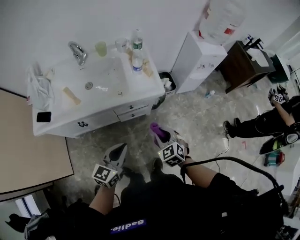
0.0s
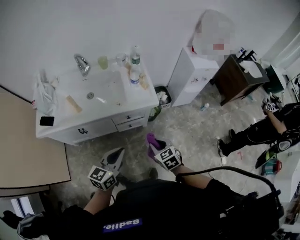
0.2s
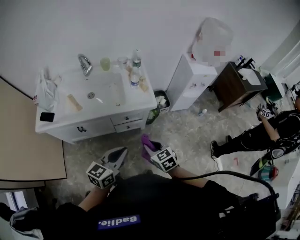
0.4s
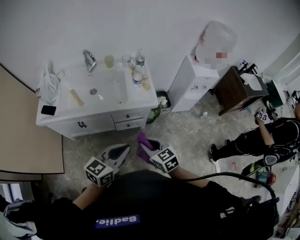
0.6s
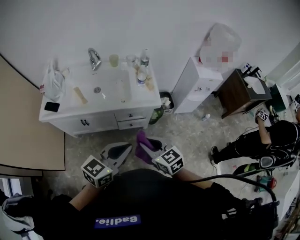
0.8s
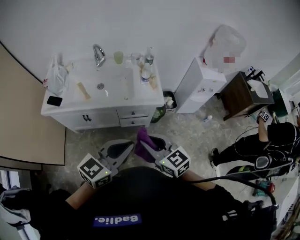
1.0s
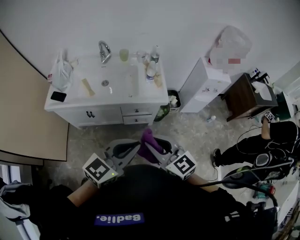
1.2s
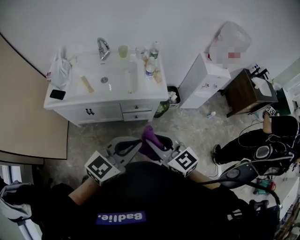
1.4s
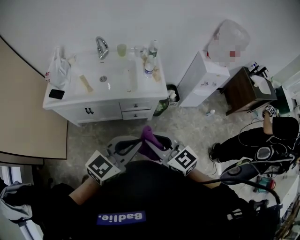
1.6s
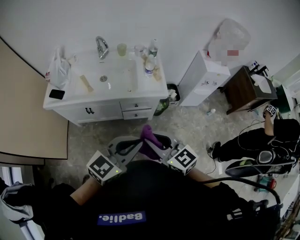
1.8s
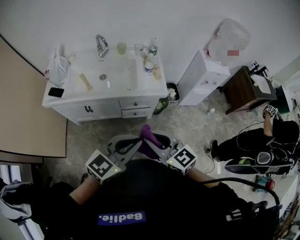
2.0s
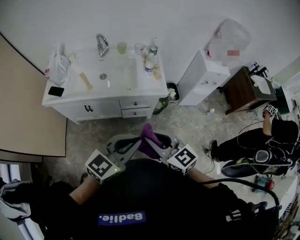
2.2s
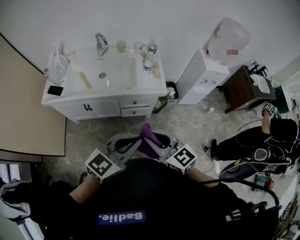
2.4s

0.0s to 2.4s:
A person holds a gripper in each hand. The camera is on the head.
0.0s to 1.2s: Both grippers travel together upward and backward, approximately 25 cm. The right gripper tips its fingers upward by approximately 30 degrees.
1.2s to 2.4s: There are only small adjustments of the grippers.

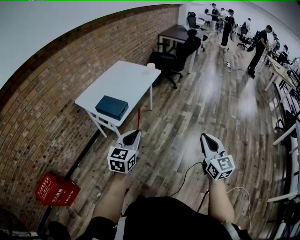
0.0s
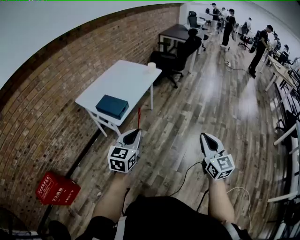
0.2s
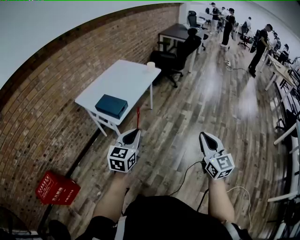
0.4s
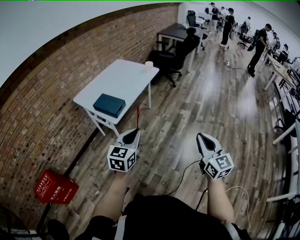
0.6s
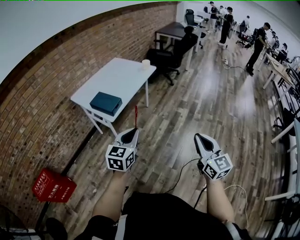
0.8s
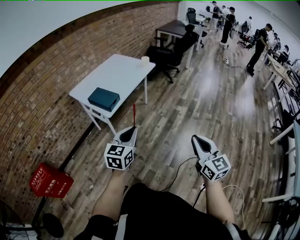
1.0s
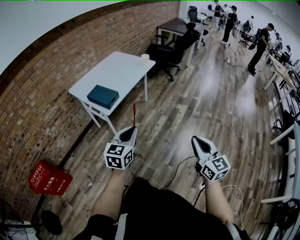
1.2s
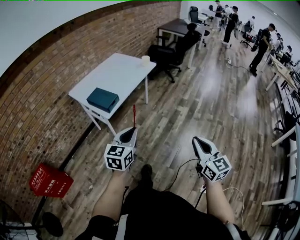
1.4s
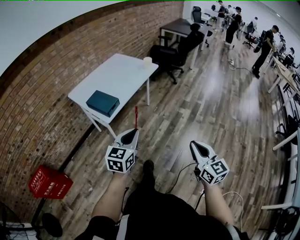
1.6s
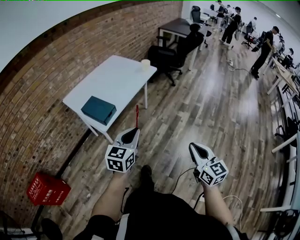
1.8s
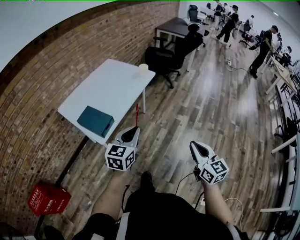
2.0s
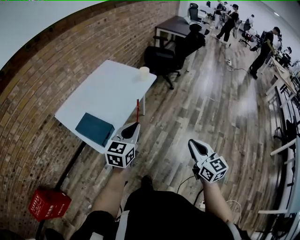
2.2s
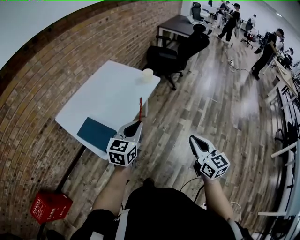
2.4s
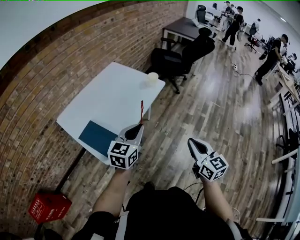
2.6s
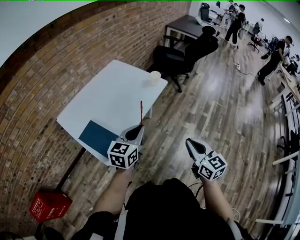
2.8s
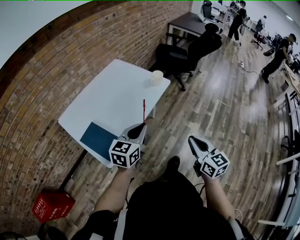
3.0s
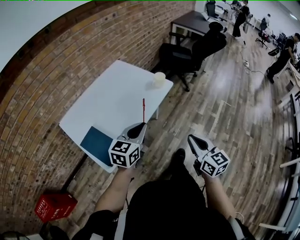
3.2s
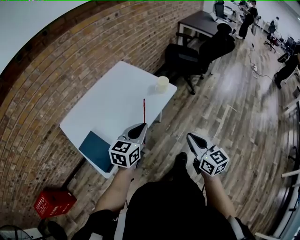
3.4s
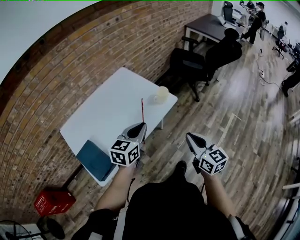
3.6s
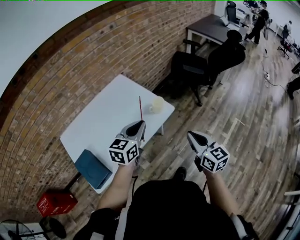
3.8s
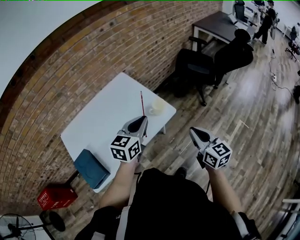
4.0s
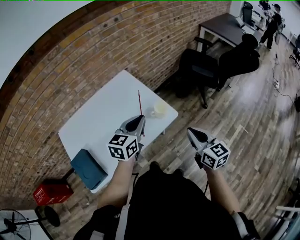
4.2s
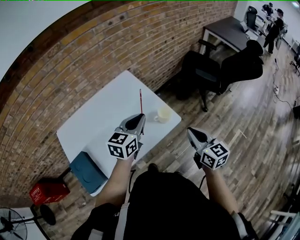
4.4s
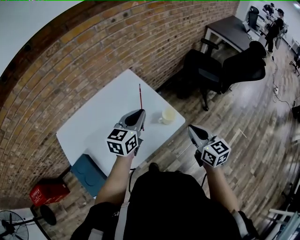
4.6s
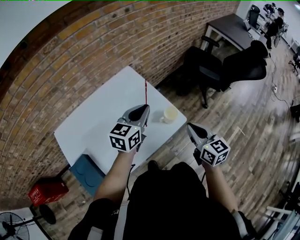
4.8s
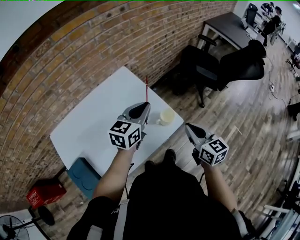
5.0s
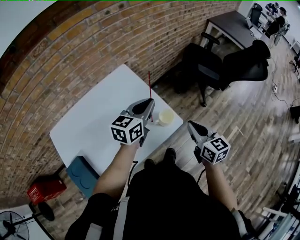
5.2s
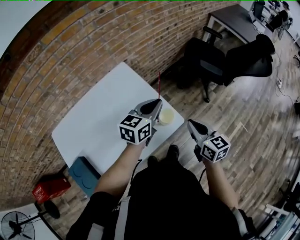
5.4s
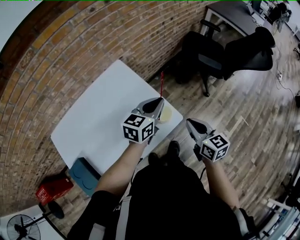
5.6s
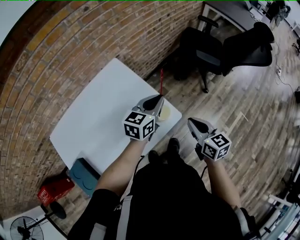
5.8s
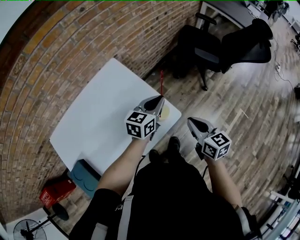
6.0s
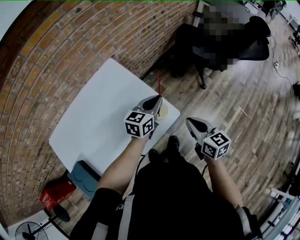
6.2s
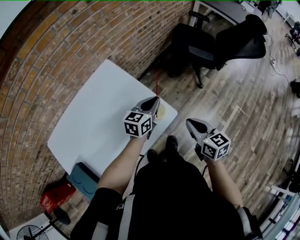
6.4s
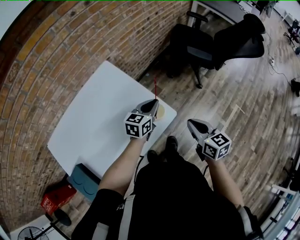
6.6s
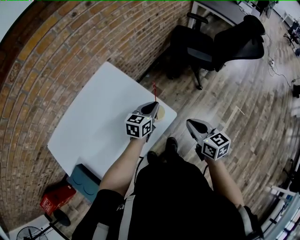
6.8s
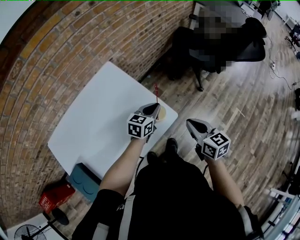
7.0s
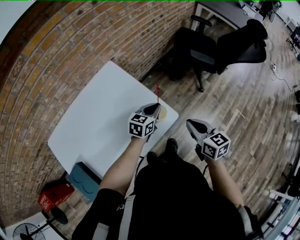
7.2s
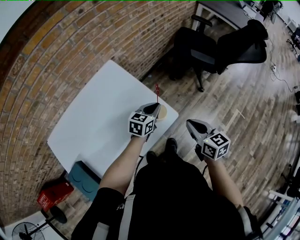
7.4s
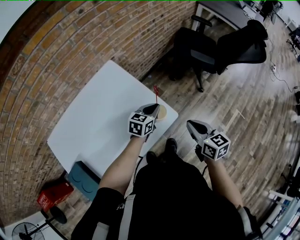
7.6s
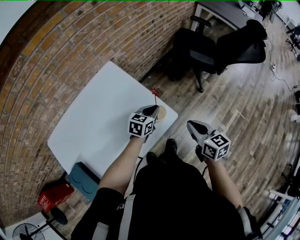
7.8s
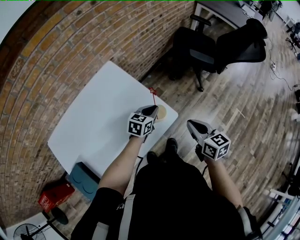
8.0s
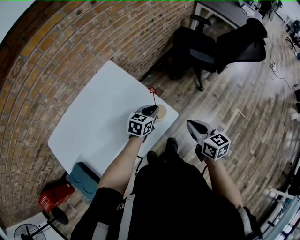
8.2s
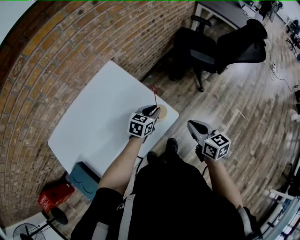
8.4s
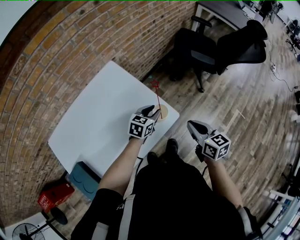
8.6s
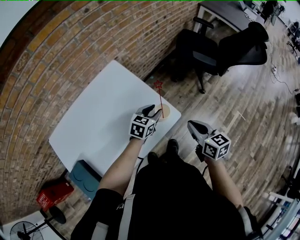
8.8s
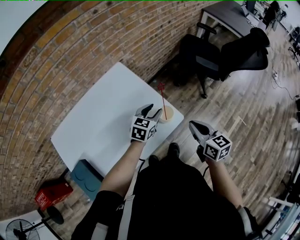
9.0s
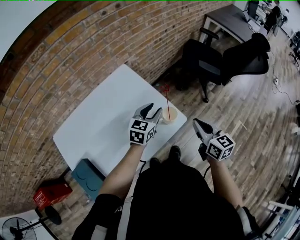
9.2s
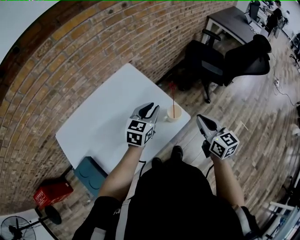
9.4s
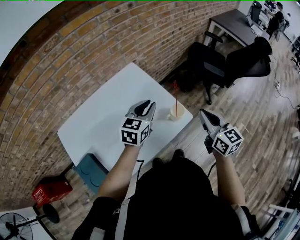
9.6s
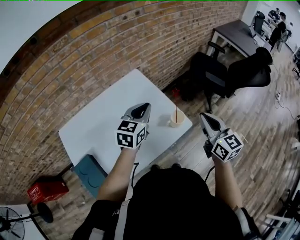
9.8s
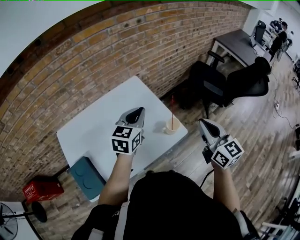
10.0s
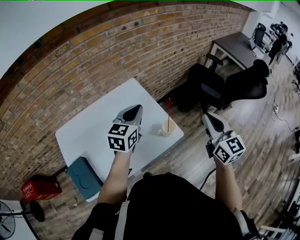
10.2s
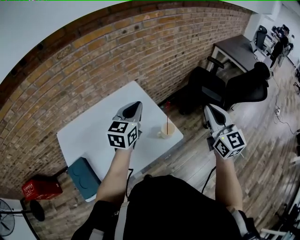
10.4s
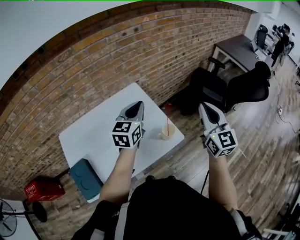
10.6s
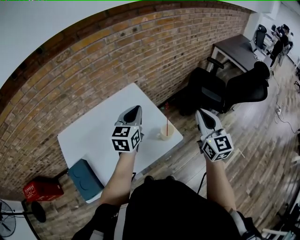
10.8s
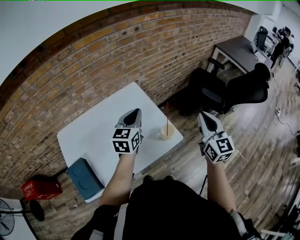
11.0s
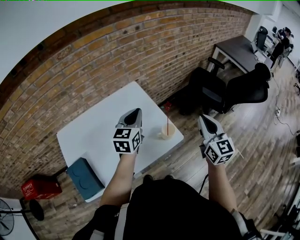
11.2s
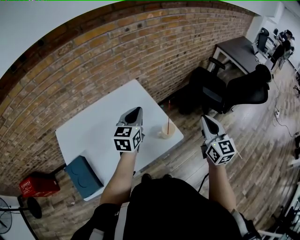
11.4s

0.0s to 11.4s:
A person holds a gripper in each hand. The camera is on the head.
0.0s to 1.4s: The left gripper goes roughly 5 cm to the right, while the right gripper shifts by about 5 cm.
1.4s to 2.8s: The pair of grippers is taken forward, roughly 40 cm.
2.8s to 4.2s: The grippers both shift forward by approximately 40 cm.
4.2s to 5.6s: The left gripper heads forward, covering some 15 cm, while the right gripper moves forward and downward, roughly 15 cm.
5.6s to 7.2s: The left gripper heads downward, covering approximately 10 cm.
7.2s to 8.6s: The left gripper opens.
8.6s to 10.0s: The left gripper heads upward and to the left, covering some 25 cm, rotates roughly 30 degrees, and closes. Meanwhile the right gripper moves upward, about 15 cm, and swivels approximately 30 degrees.
10.0s to 11.4s: The right gripper moves to the right, some 5 cm, and travels upward and back again, roughly 5 cm each way.

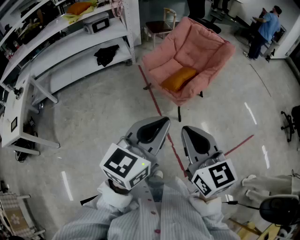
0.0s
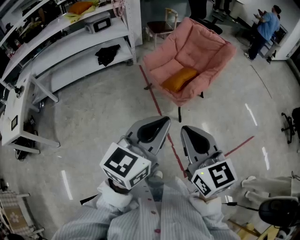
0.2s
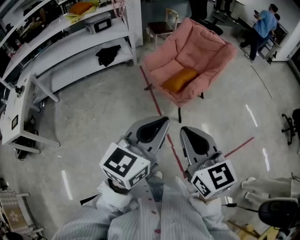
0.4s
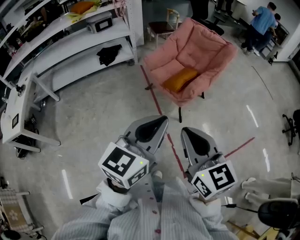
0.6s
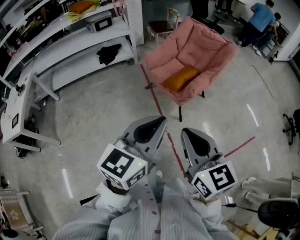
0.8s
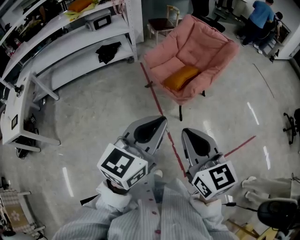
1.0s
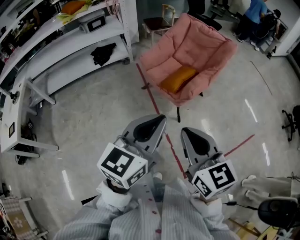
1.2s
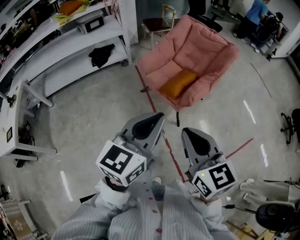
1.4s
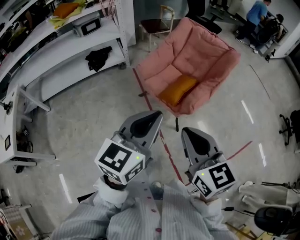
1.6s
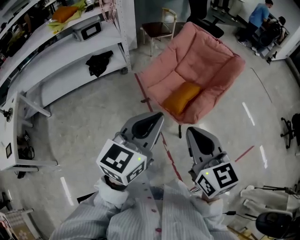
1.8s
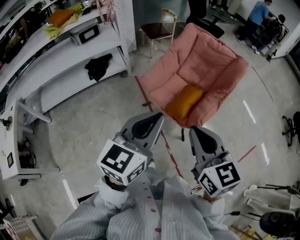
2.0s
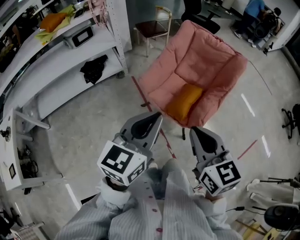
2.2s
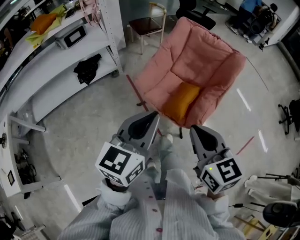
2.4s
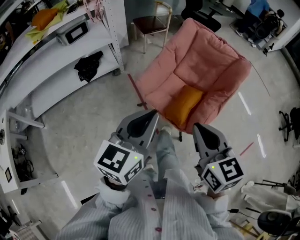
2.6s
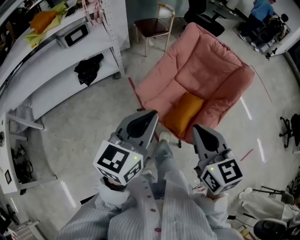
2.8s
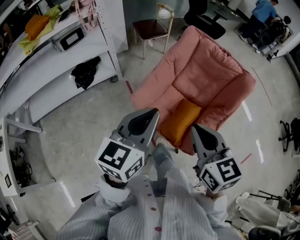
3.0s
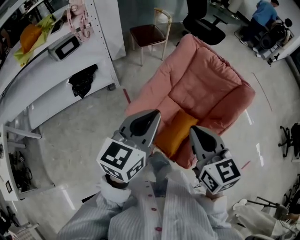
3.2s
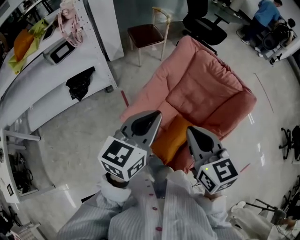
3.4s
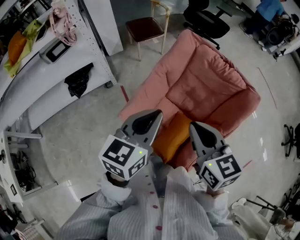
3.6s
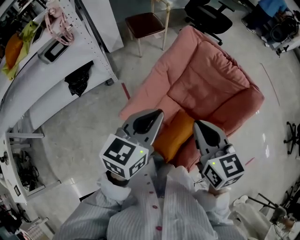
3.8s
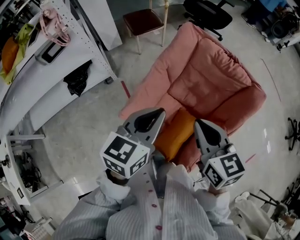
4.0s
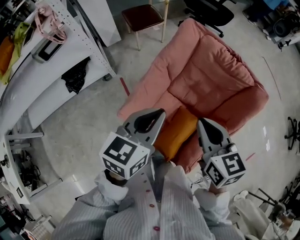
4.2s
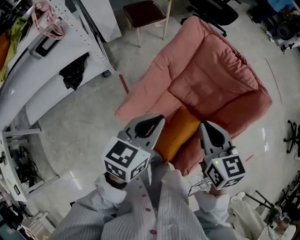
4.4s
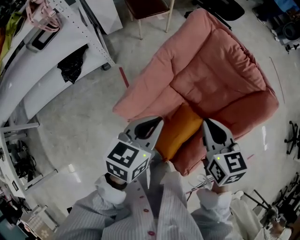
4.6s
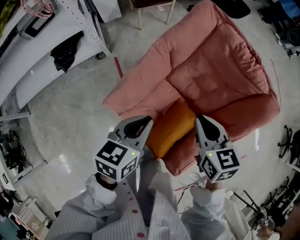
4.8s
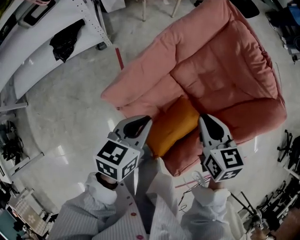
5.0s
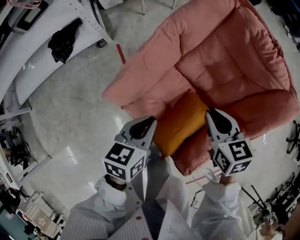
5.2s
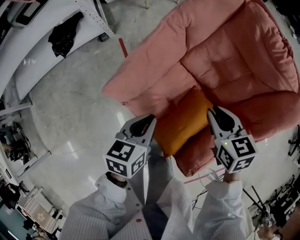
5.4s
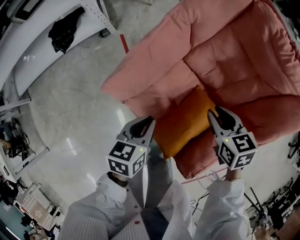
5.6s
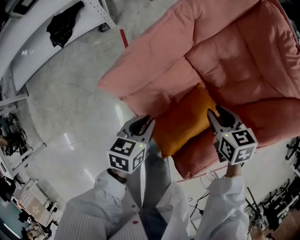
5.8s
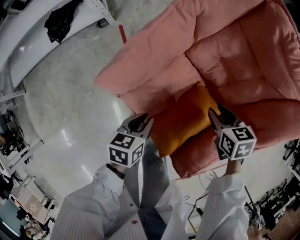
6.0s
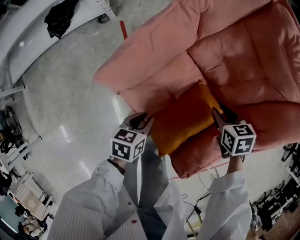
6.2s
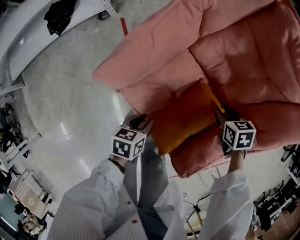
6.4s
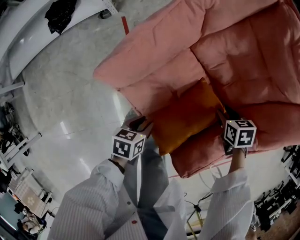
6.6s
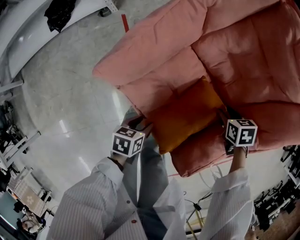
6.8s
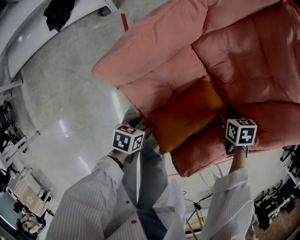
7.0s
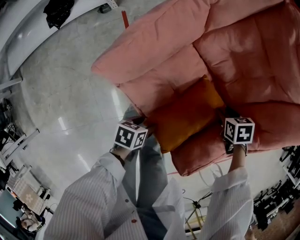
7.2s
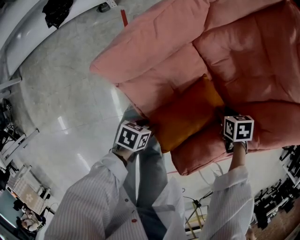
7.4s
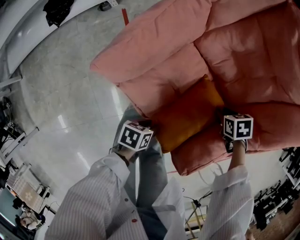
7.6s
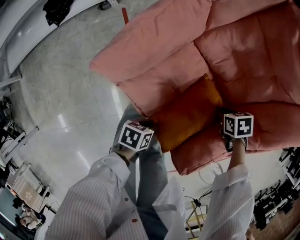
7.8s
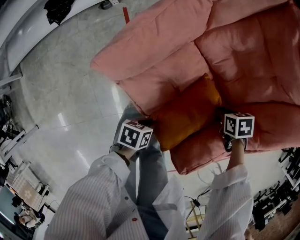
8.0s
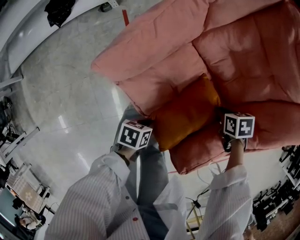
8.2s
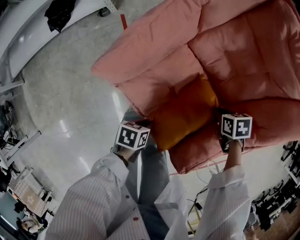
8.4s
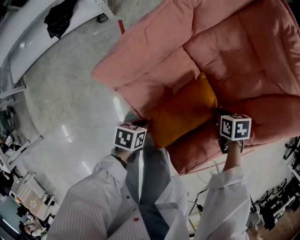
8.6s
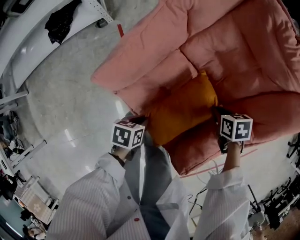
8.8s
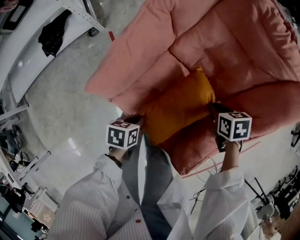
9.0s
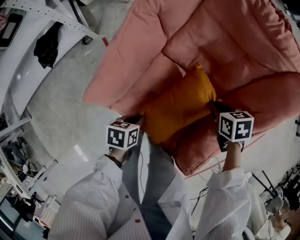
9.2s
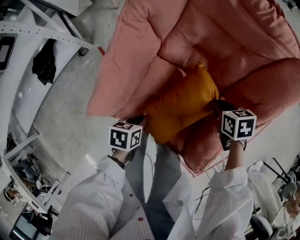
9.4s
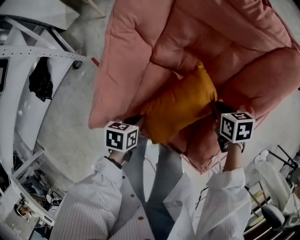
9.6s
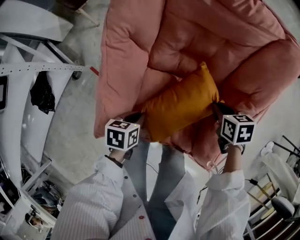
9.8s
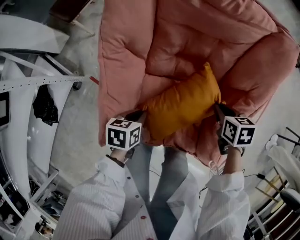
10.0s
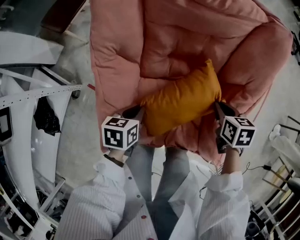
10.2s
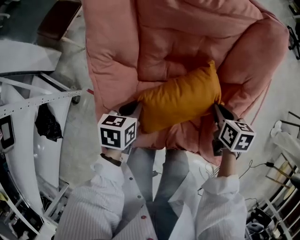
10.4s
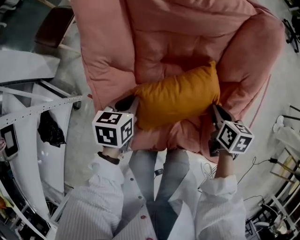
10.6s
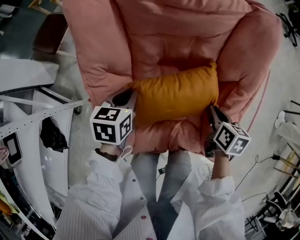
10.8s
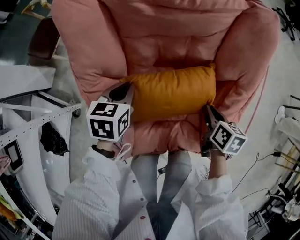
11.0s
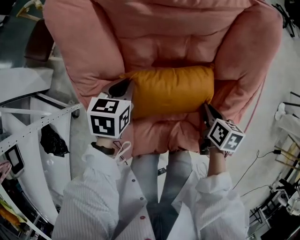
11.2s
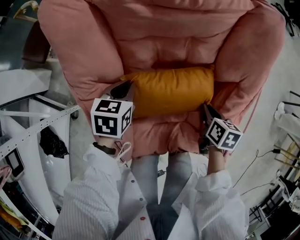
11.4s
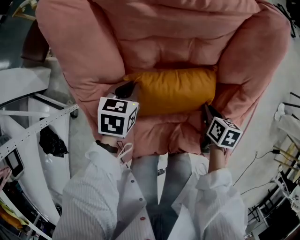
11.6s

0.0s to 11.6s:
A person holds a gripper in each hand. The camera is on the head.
0.0s to 1.4s: The grippers both shift forward by roughly 10 cm.
1.4s to 2.8s: Both grippers move forward, roughly 35 cm.
2.8s to 4.4s: Both grippers move forward, some 30 cm. The left gripper rotates roughly 20 degrees.
4.4s to 5.8s: The grippers both shift downward by approximately 30 cm. The right gripper changes its angle by about 30 degrees. The left gripper changes its angle by about 30 degrees.
5.8s to 7.2s: The two grippers go roughly 15 cm downward. The right gripper changes its angle by roughly 20 degrees, while the left gripper rotates some 30 degrees, and opens its fingers.
7.2s to 8.8s: The right gripper closes. The left gripper changes place by roughly 5 cm, and closes.
8.8s to 10.2s: The right gripper moves upward, approximately 10 cm, and rotates some 50 degrees. Meanwhile the left gripper shifts by approximately 25 cm, and rotates approximately 40 degrees.
10.2s to 11.6s: The right gripper moves downward, some 5 cm, and swivels approximately 30 degrees. Meanwhile the left gripper goes about 15 cm forward, and swivels approximately 20 degrees.
